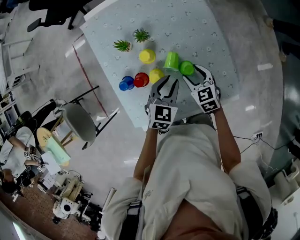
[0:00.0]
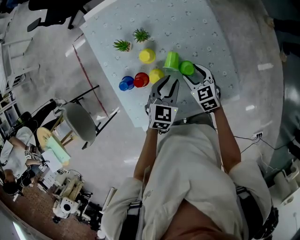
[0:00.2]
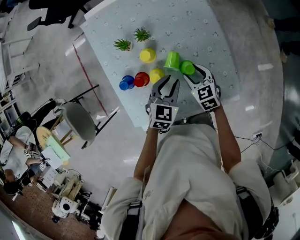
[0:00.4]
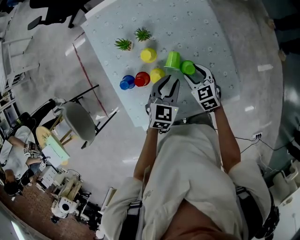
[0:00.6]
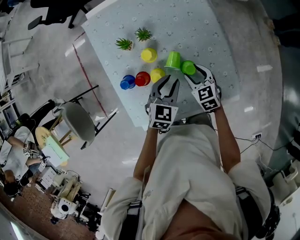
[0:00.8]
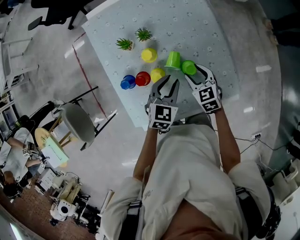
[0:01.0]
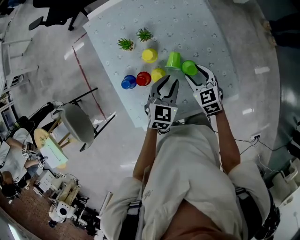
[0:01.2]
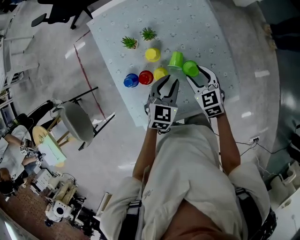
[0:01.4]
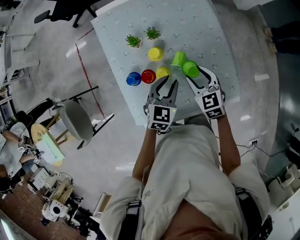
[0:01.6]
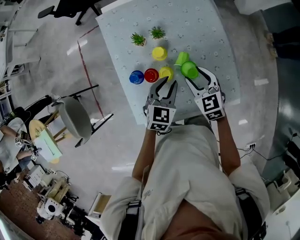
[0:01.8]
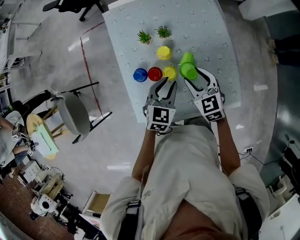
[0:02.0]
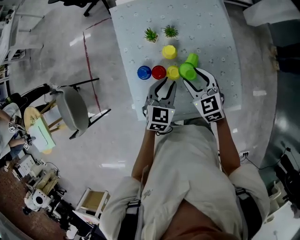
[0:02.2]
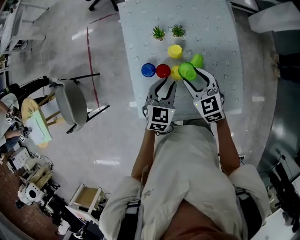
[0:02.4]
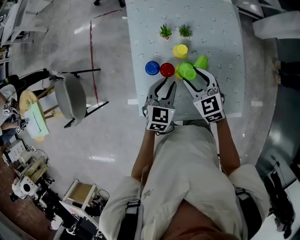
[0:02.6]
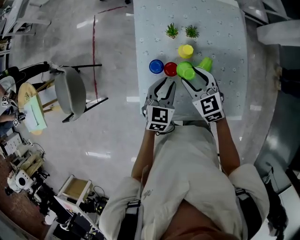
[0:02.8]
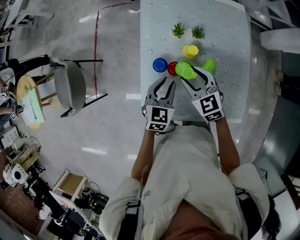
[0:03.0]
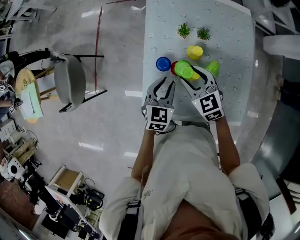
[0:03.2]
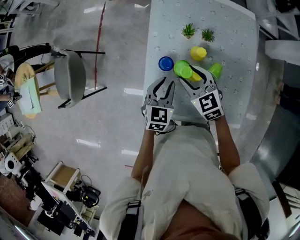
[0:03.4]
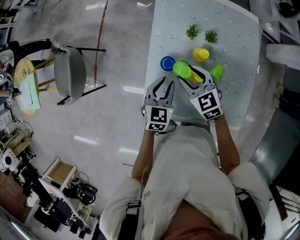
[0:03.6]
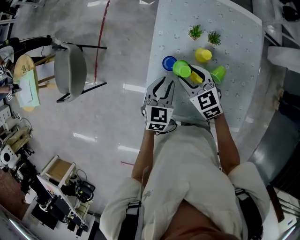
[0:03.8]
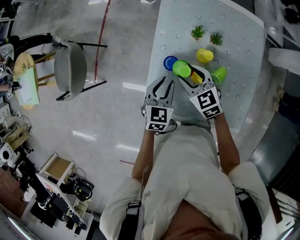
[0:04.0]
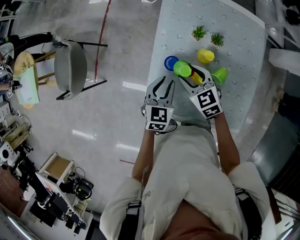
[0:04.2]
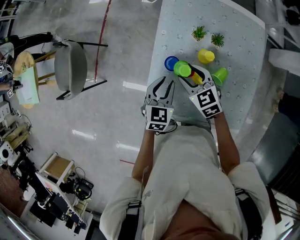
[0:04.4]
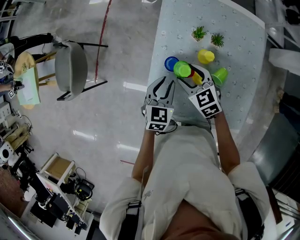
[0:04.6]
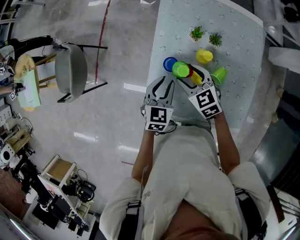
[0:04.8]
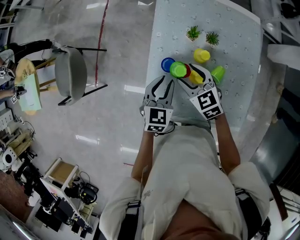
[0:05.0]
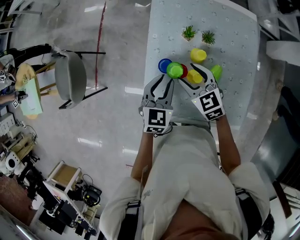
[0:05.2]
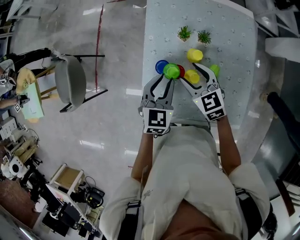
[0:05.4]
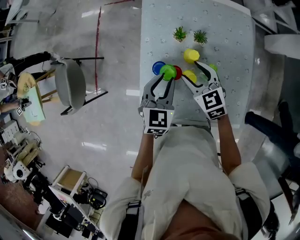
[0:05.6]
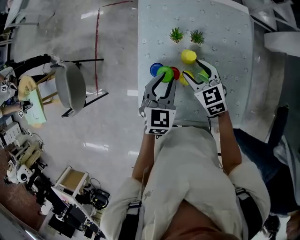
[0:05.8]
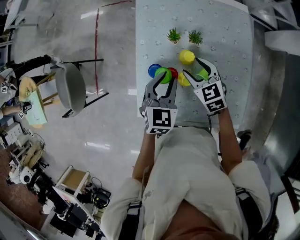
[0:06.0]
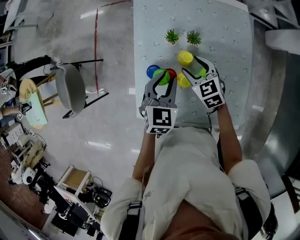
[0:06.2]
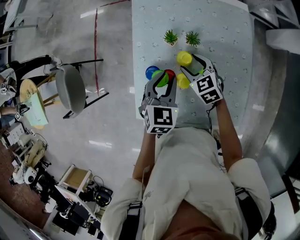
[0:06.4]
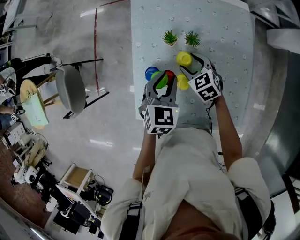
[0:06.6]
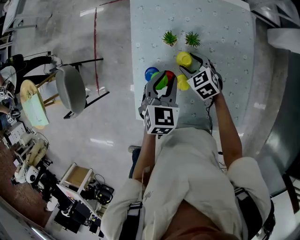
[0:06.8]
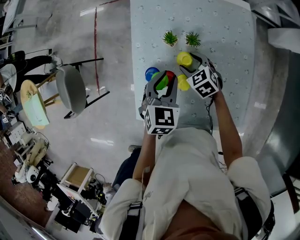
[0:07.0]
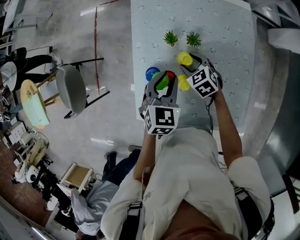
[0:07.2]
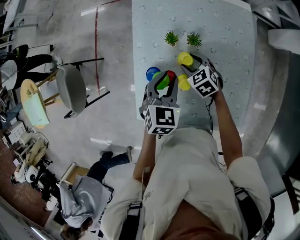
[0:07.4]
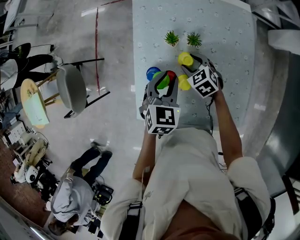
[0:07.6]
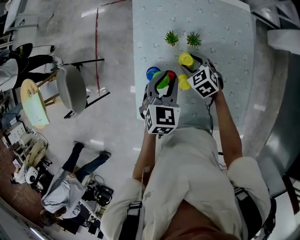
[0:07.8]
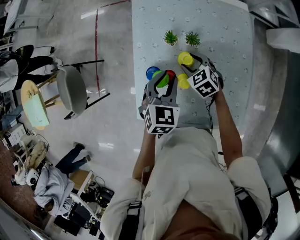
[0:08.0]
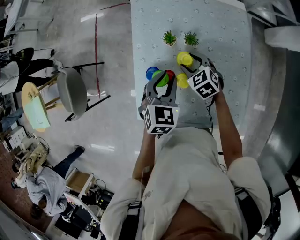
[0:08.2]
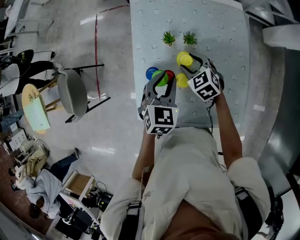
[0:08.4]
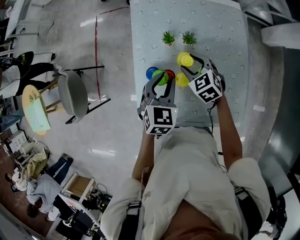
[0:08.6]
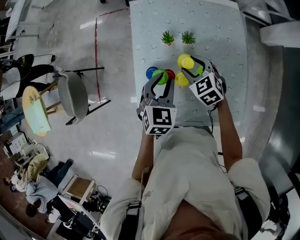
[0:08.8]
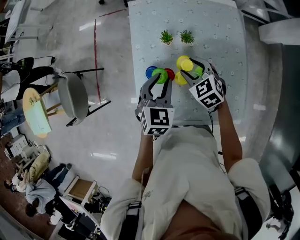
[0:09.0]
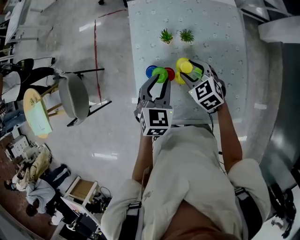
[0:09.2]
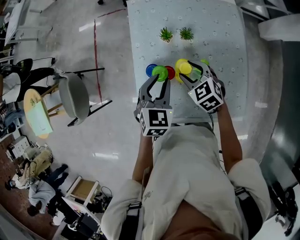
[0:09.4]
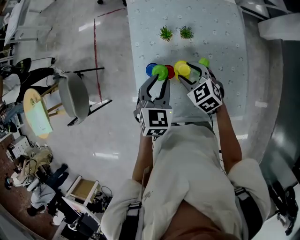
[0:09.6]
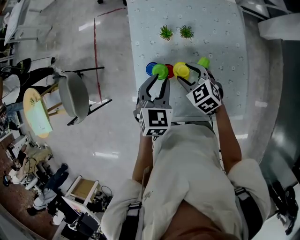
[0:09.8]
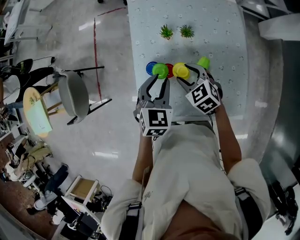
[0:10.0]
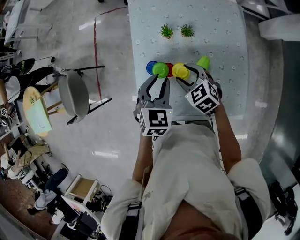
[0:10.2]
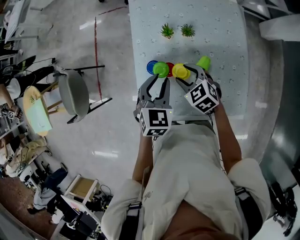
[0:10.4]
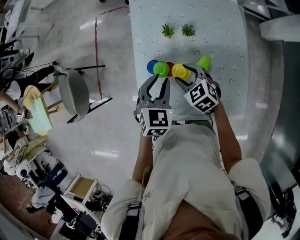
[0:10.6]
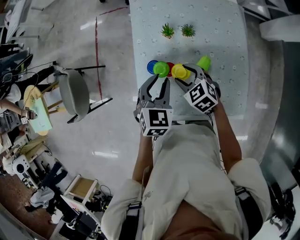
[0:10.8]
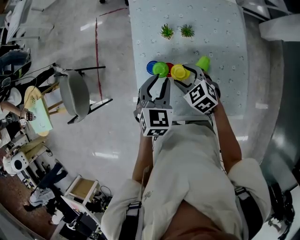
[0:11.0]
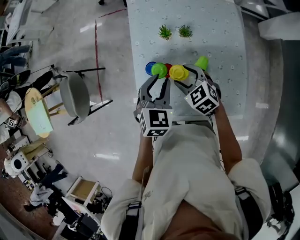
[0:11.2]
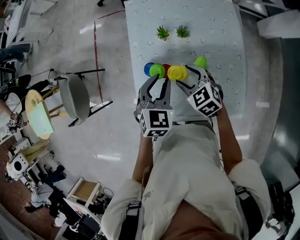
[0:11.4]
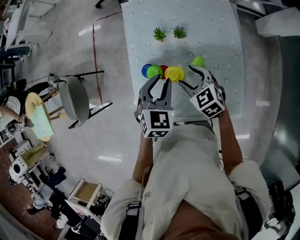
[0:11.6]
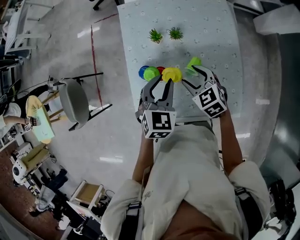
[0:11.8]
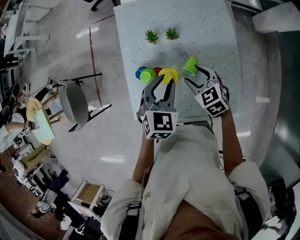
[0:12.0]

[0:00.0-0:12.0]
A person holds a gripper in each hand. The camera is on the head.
0.0 to 1.6 s: The left gripper ends up about 5 cm from where it was; the right gripper shifts some 5 cm upward.
1.6 to 3.0 s: Both grippers move to the left, some 15 cm. The left gripper turns by approximately 20 degrees; the right gripper rotates roughly 20 degrees.
3.0 to 4.4 s: The grippers both shift to the left by about 5 cm.
4.4 to 6.0 s: The right gripper shifts approximately 10 cm to the right. Meanwhile the left gripper heads to the right and upward, covering approximately 10 cm.
6.0 to 7.6 s: The right gripper moves downward, about 10 cm.
7.6 to 9.0 s: The right gripper heads upward, covering about 10 cm.
9.0 to 10.4 s: The right gripper travels backward by some 5 cm.
10.4 to 12.0 s: Both grippers move to the right, roughly 10 cm.

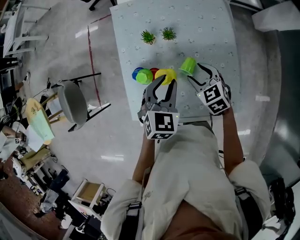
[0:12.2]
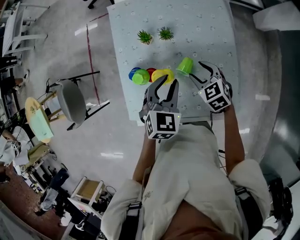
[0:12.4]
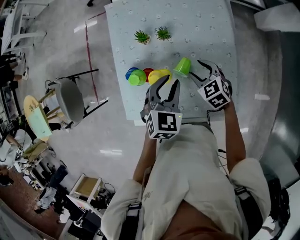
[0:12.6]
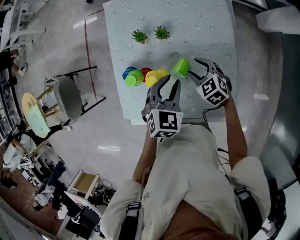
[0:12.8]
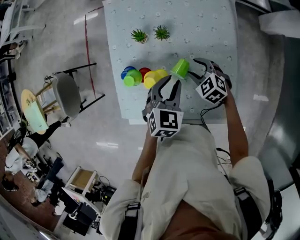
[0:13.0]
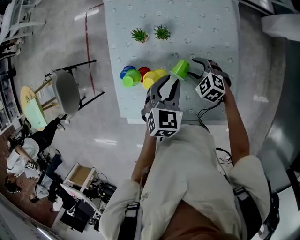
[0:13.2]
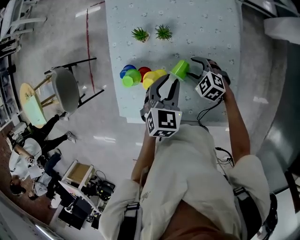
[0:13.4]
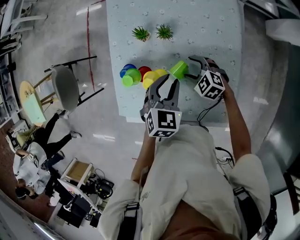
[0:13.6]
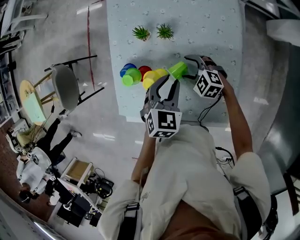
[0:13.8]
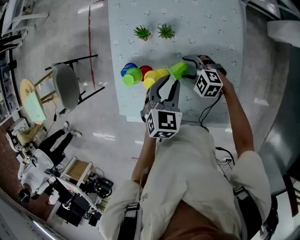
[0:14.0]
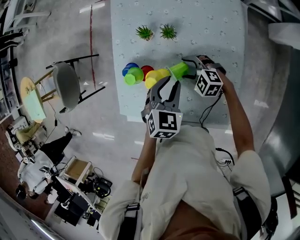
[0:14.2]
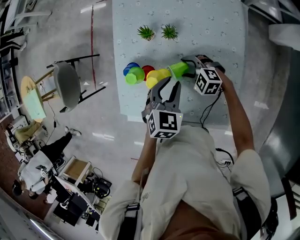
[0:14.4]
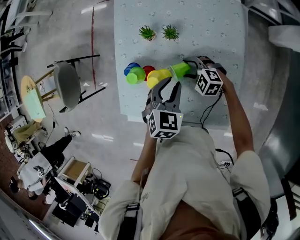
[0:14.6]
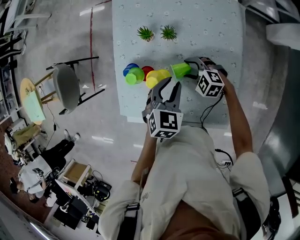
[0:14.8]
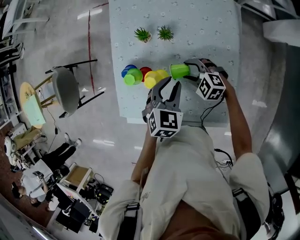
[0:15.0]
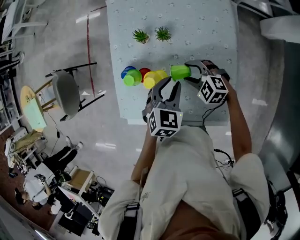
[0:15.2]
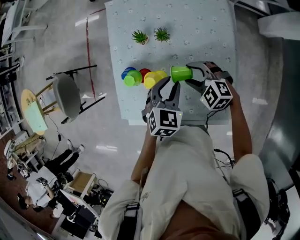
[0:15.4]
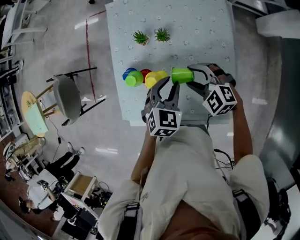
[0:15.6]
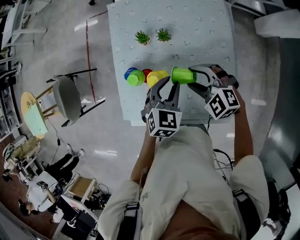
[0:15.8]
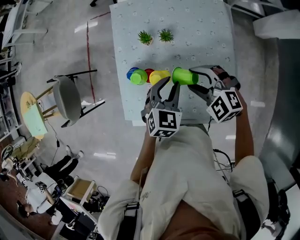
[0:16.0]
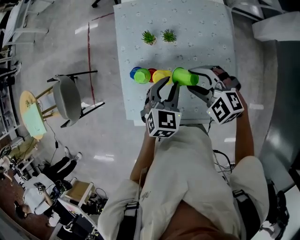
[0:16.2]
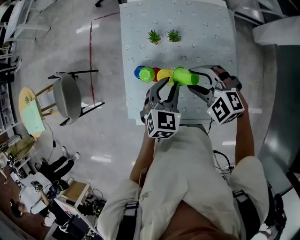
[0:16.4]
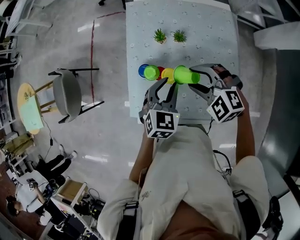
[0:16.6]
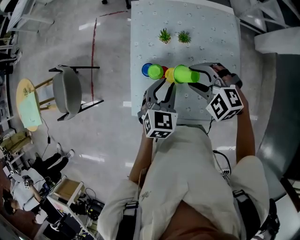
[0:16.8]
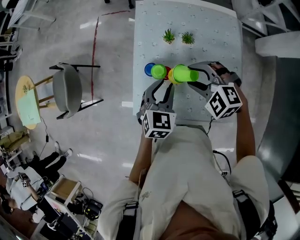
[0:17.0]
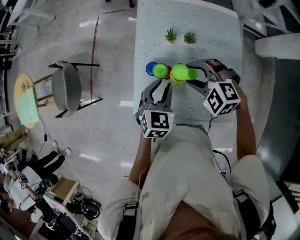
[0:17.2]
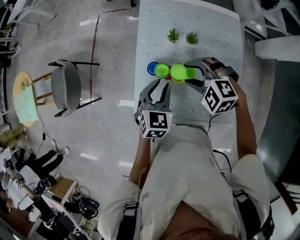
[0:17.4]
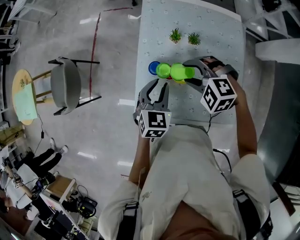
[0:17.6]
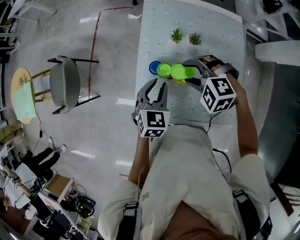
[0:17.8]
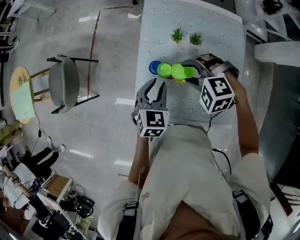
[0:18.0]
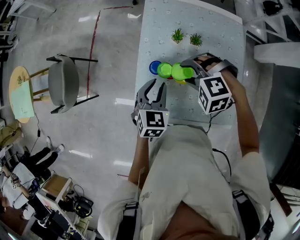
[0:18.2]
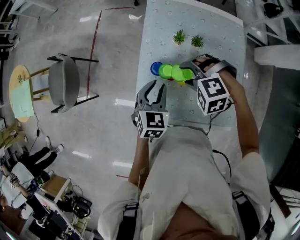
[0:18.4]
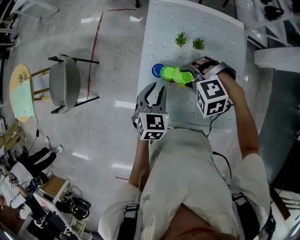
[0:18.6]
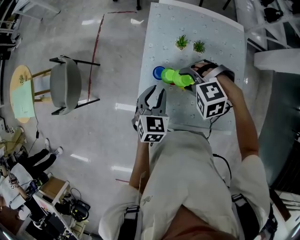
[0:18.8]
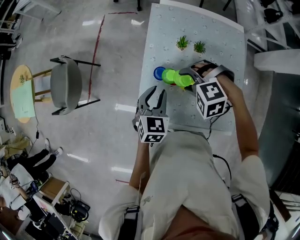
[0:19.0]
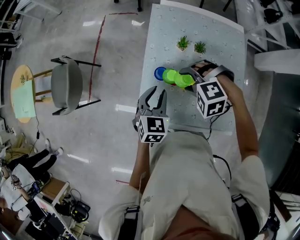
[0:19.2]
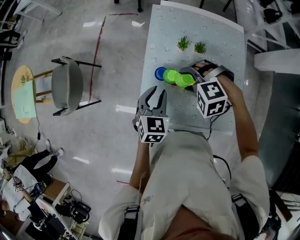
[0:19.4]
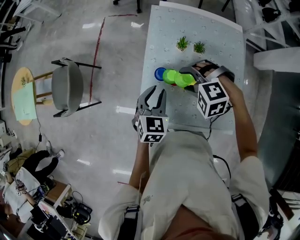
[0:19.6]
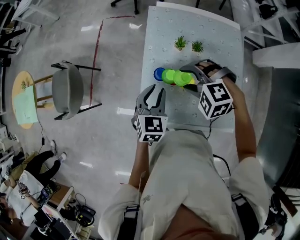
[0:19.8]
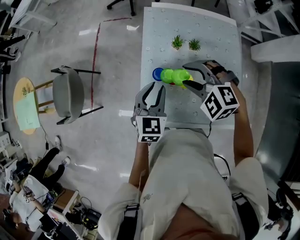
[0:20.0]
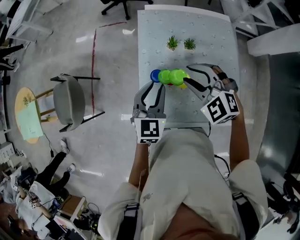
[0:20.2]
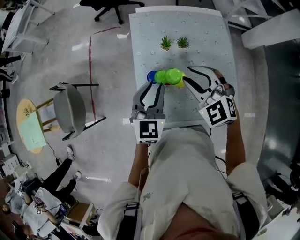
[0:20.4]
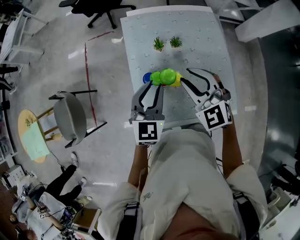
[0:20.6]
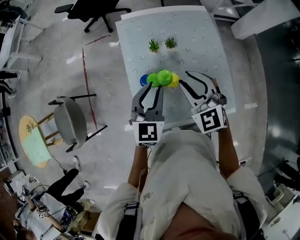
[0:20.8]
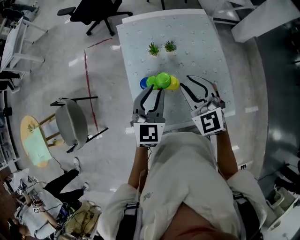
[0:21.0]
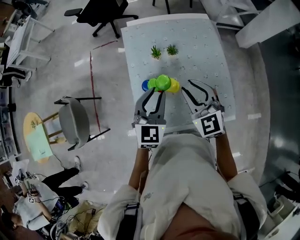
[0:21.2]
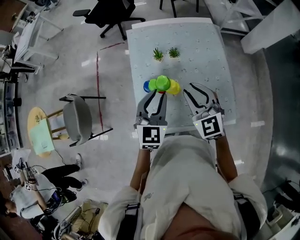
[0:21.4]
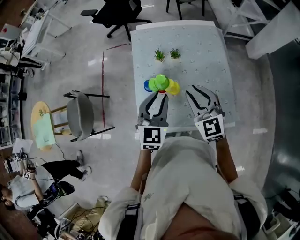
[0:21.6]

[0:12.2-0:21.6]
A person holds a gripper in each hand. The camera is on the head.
12.2 to 13.8 s: The left gripper shifts roughly 10 cm downward and to the right; the right gripper travels downward by approximately 10 cm, and changes its angle by about 40 degrees.
13.8 to 15.4 s: The right gripper heads upward, covering some 10 cm.
15.4 to 17.0 s: The left gripper shifts roughly 15 cm to the left. The right gripper travels upward and to the left by about 15 cm.
17.0 to 18.4 s: Both grippers move to the left, roughly 5 cm. The right gripper turns by about 30 degrees.
18.4 to 20.0 s: The right gripper goes some 5 cm upward, and rotates approximately 30 degrees.
20.0 to 21.6 s: The right gripper is displaced to the right, backward and upward by some 15 cm, angles its fingers upward, by roughly 30 degrees, and closes its fingers. Meanwhile the left gripper travels to the right, upward and backward by some 15 cm.

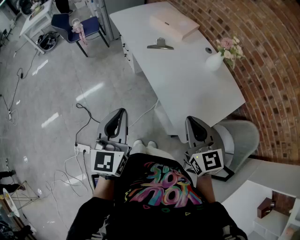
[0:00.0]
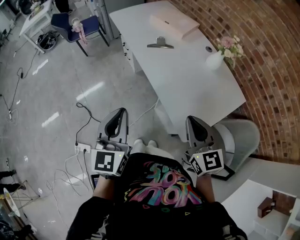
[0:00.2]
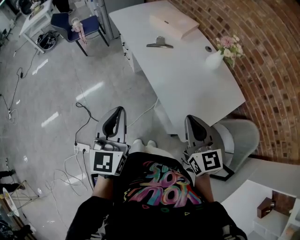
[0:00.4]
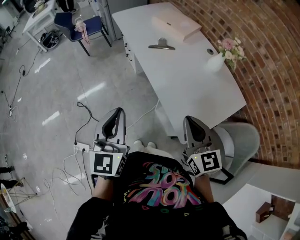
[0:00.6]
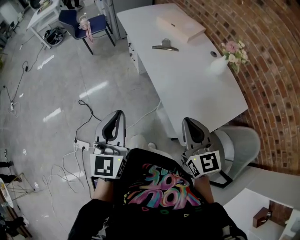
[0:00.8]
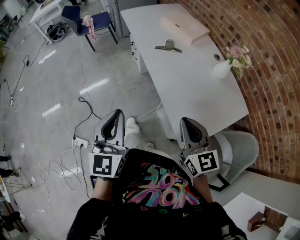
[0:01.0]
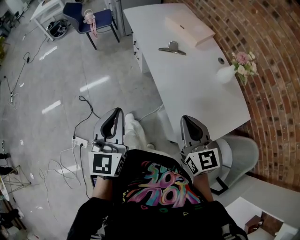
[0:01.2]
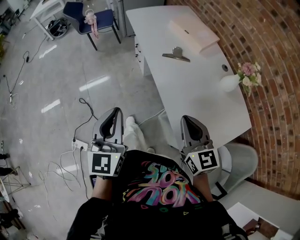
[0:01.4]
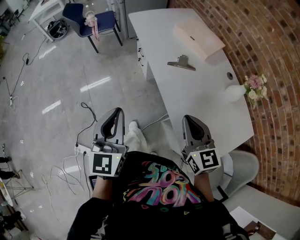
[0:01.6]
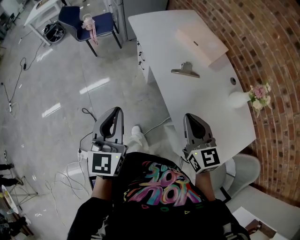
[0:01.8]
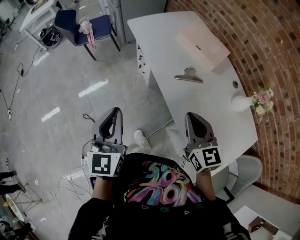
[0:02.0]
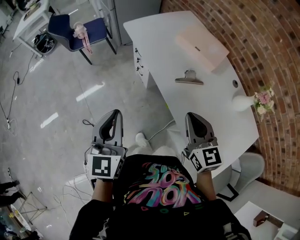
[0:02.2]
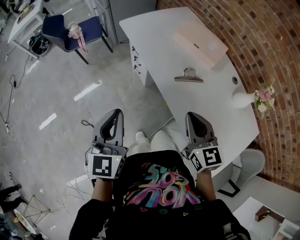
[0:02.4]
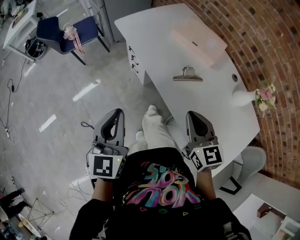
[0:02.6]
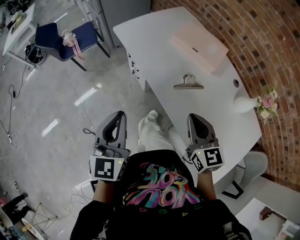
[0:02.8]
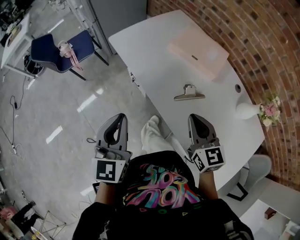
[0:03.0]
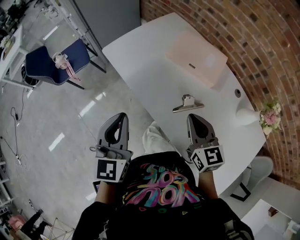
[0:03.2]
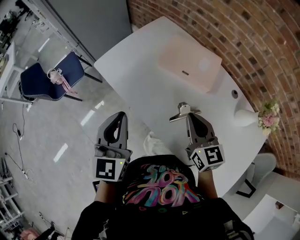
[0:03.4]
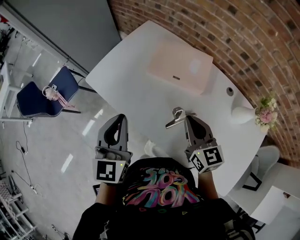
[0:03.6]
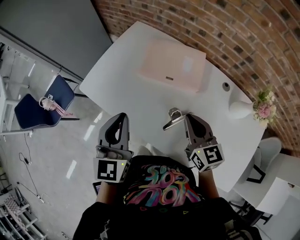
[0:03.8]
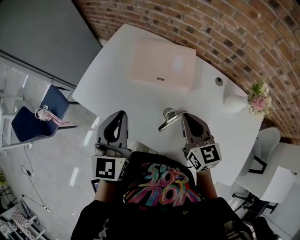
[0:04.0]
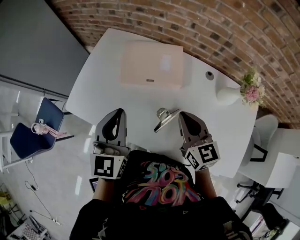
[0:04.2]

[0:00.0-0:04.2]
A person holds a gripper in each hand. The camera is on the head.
0.0 to 1.4 s: The two grippers go approximately 10 cm forward.
1.4 to 2.8 s: The two grippers go roughly 30 cm forward.
2.8 to 4.2 s: The right gripper shifts by about 25 cm, and turns by approximately 30 degrees; the left gripper changes place by some 40 cm, and turns by about 40 degrees.
